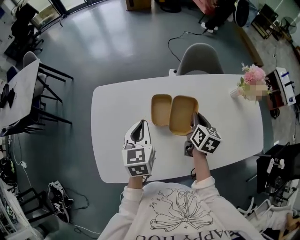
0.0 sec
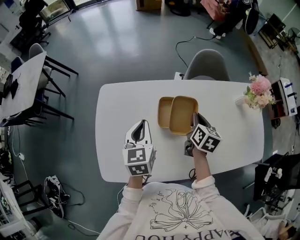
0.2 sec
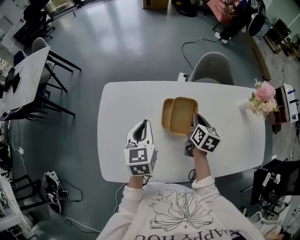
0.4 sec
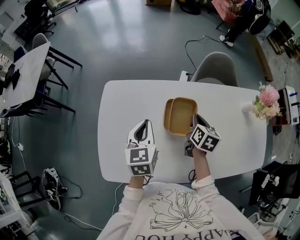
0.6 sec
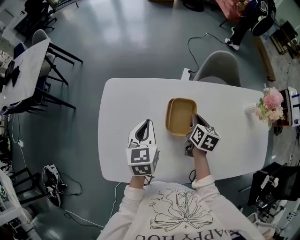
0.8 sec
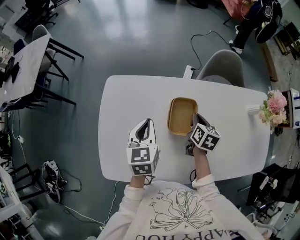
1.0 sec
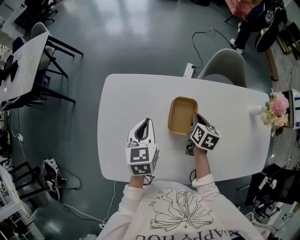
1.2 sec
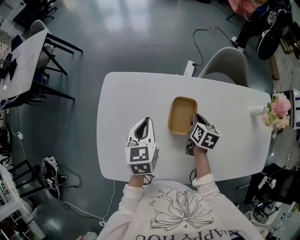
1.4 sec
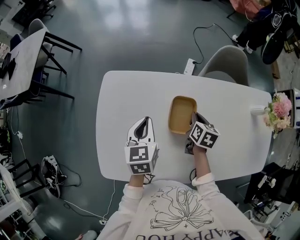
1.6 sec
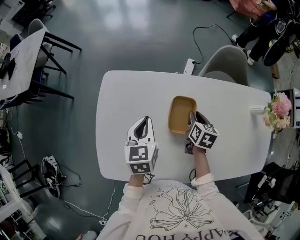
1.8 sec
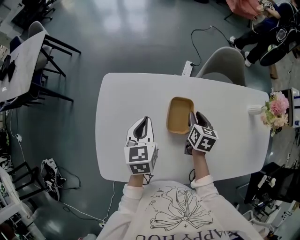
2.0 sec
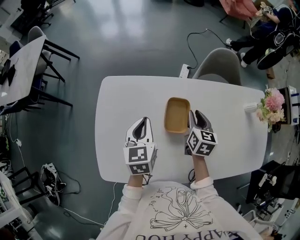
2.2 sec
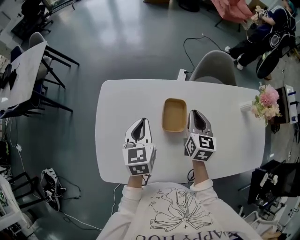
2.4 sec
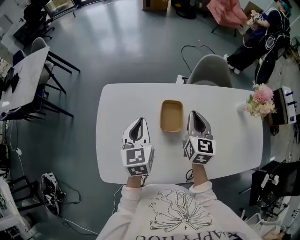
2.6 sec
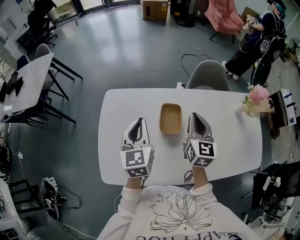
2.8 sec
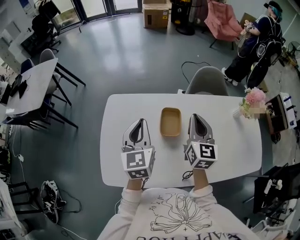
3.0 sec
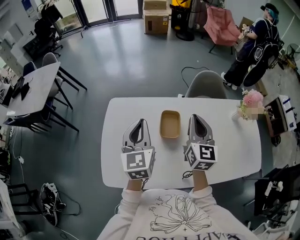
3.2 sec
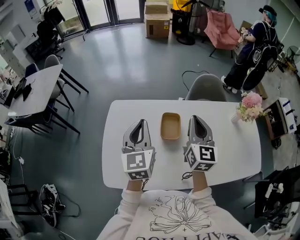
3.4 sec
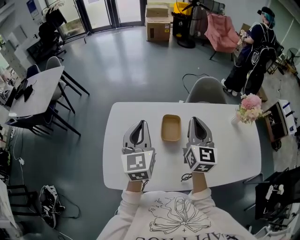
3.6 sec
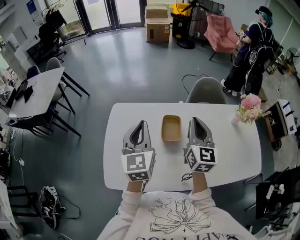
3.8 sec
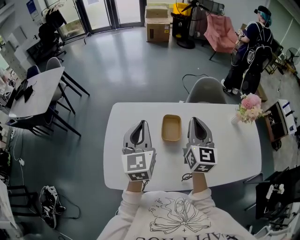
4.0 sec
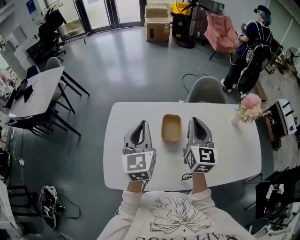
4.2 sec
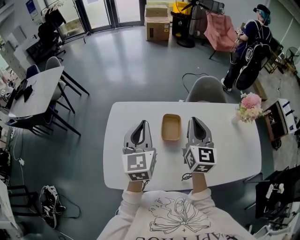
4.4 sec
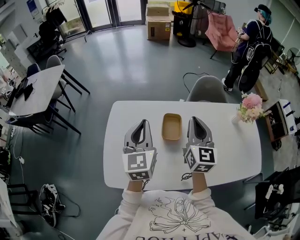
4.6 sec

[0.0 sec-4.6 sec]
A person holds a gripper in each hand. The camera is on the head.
0.0 sec to 1.6 sec: The right gripper moves downward, to the left and forward, about 15 cm. Meanwhile the left gripper heads to the left, downward and forward, covering some 10 cm.
1.6 sec to 3.0 sec: The right gripper heads upward, covering approximately 25 cm, tips its fingers upward by approximately 40 degrees, and opens, then closes again. The left gripper heads upward, covering some 15 cm, and changes its angle by about 20 degrees.
3.0 sec to 4.6 sec: The left gripper moves upward, about 5 cm, while the right gripper ends up some 5 cm from where it was.

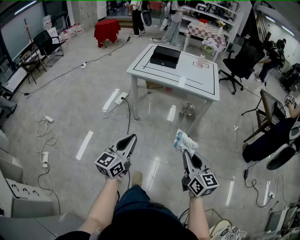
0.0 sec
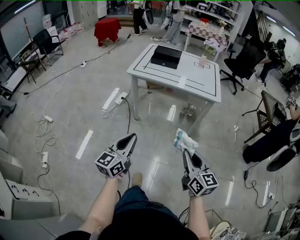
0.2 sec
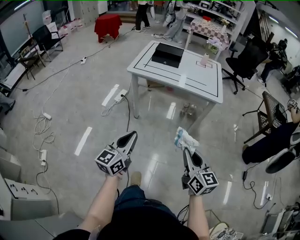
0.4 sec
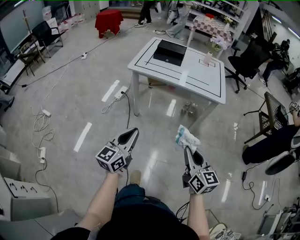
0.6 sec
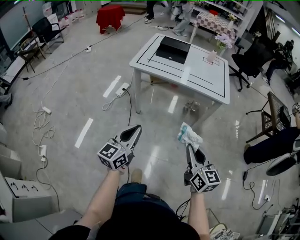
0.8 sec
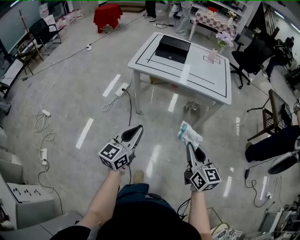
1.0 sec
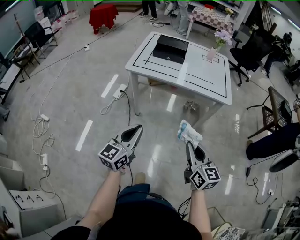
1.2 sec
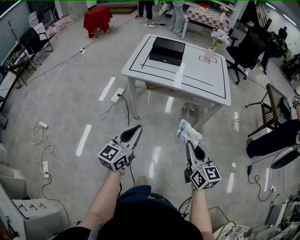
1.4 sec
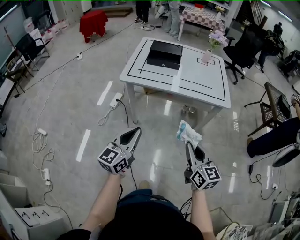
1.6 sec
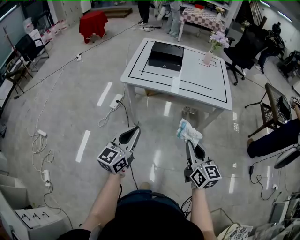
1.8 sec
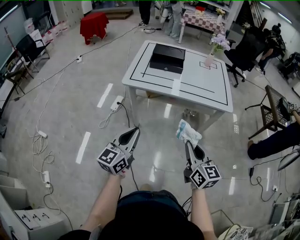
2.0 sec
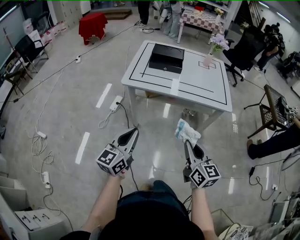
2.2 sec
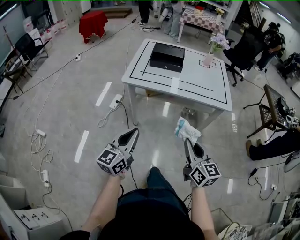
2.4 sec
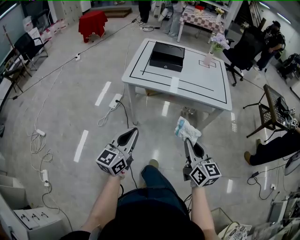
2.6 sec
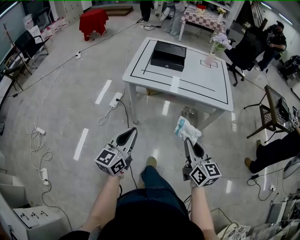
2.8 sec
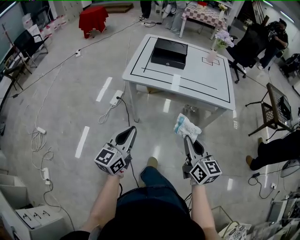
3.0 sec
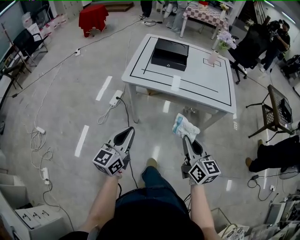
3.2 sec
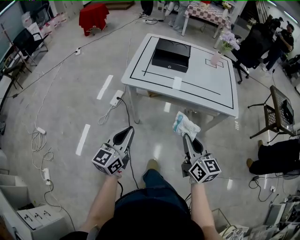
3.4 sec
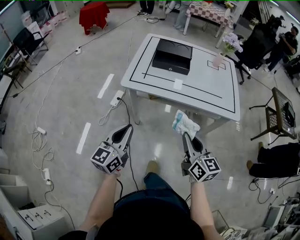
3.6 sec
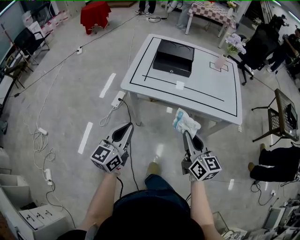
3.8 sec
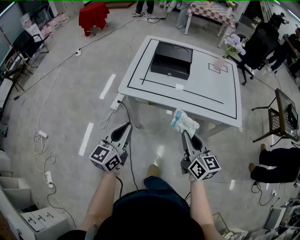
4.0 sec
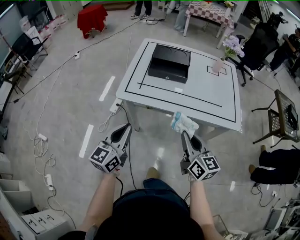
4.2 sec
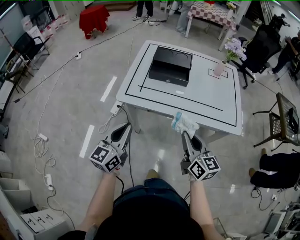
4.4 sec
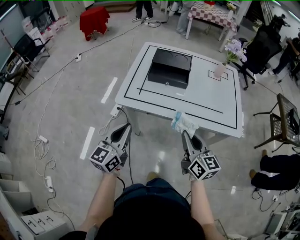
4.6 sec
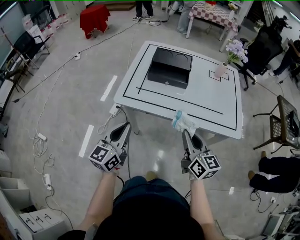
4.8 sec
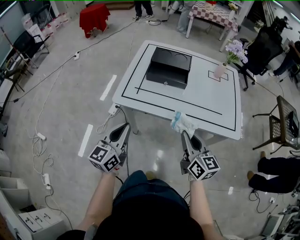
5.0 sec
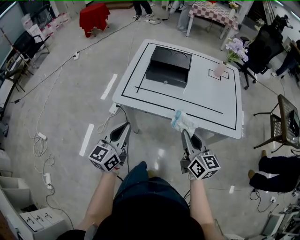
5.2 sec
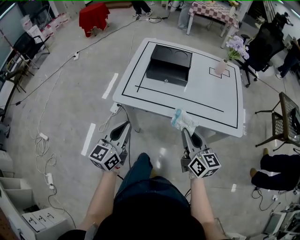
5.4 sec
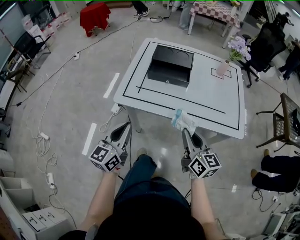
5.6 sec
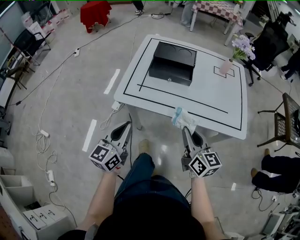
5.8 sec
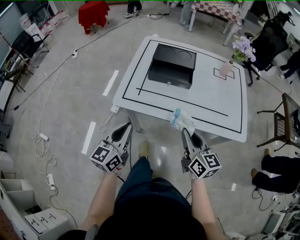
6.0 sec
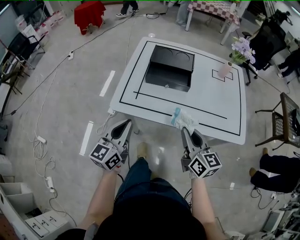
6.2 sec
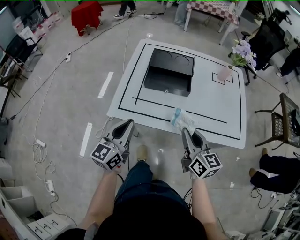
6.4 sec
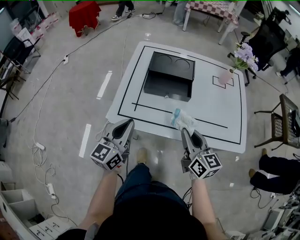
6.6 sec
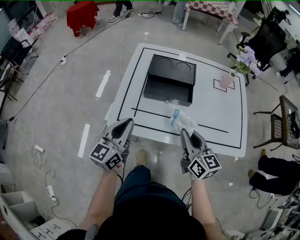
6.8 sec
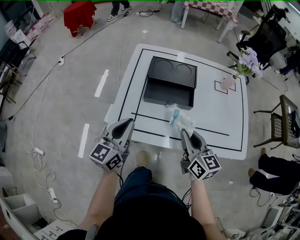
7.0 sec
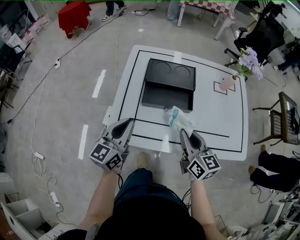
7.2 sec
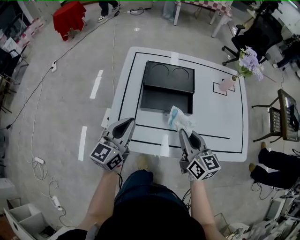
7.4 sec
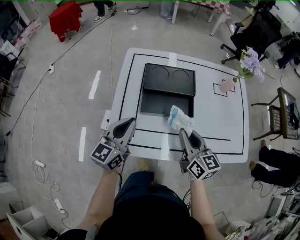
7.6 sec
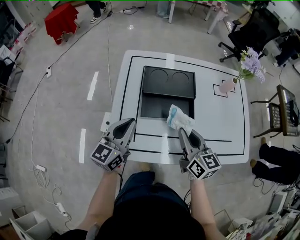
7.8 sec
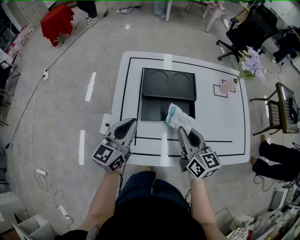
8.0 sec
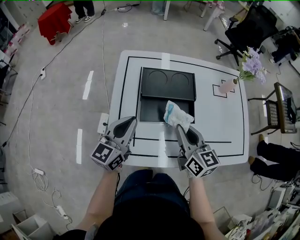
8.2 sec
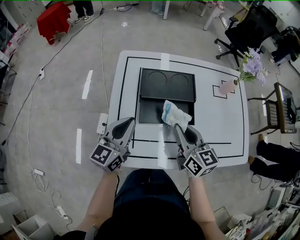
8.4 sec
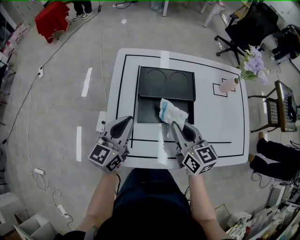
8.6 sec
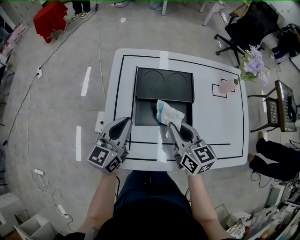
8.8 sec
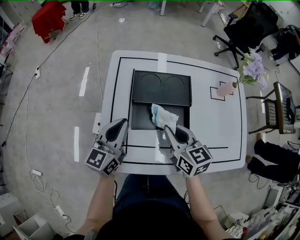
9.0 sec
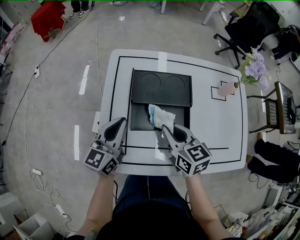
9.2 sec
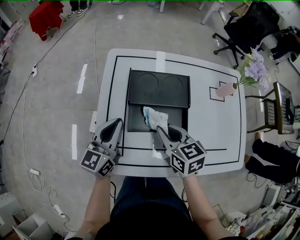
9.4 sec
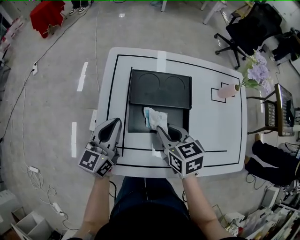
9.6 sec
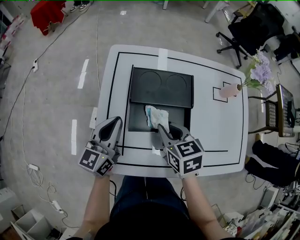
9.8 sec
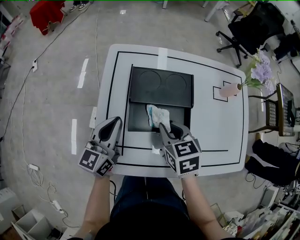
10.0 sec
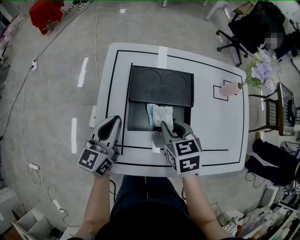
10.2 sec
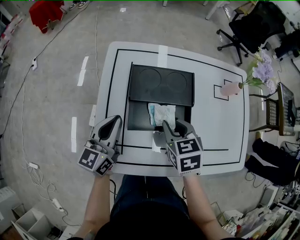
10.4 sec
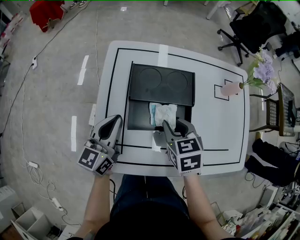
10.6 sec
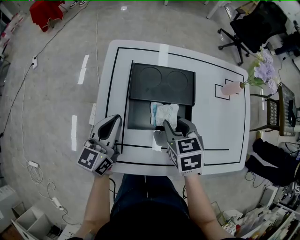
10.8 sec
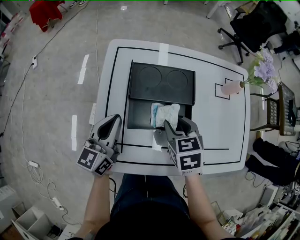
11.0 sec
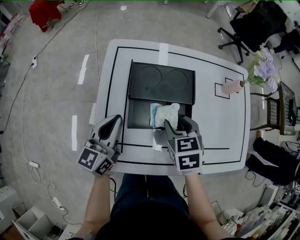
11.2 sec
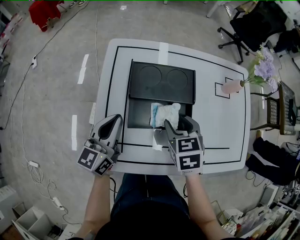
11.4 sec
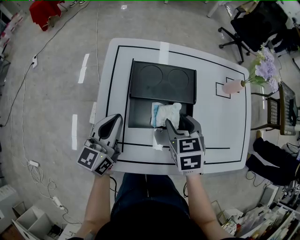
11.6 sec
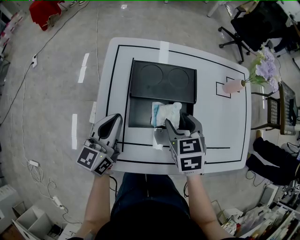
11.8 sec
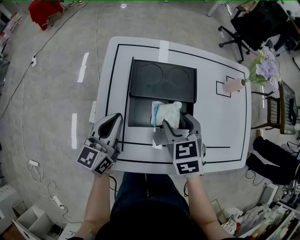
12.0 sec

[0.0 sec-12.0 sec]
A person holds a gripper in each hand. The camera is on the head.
0.0 sec to 1.6 sec: The grippers both shift forward by approximately 25 cm.
1.6 sec to 3.0 sec: The left gripper is displaced to the left by some 5 cm. The right gripper shifts by about 5 cm.
3.0 sec to 4.4 sec: The two grippers go approximately 20 cm forward.
4.4 sec to 6.0 sec: Both grippers move forward, roughly 5 cm.
6.0 sec to 7.6 sec: The grippers both shift forward by about 25 cm.
7.6 sec to 9.0 sec: Both grippers travel together forward, some 10 cm.
9.0 sec to 10.4 sec: The right gripper changes place by some 5 cm, and turns by roughly 30 degrees.
10.4 sec to 12.0 sec: The right gripper opens up.

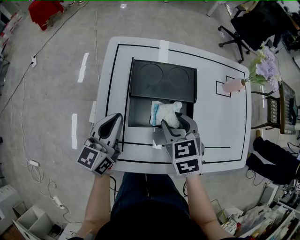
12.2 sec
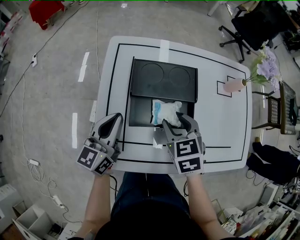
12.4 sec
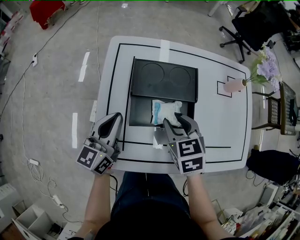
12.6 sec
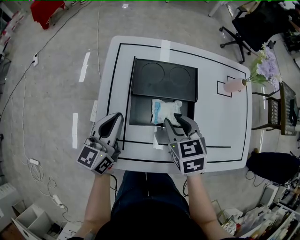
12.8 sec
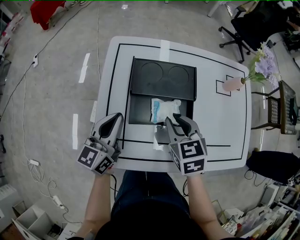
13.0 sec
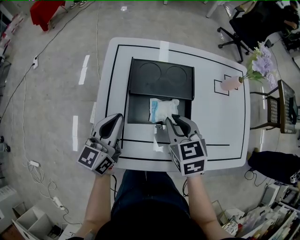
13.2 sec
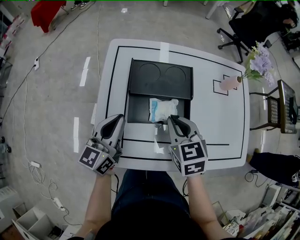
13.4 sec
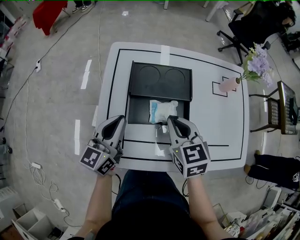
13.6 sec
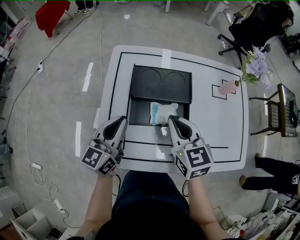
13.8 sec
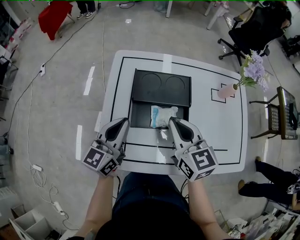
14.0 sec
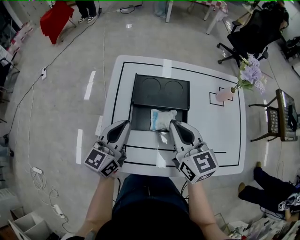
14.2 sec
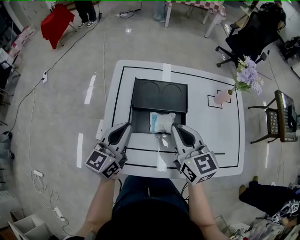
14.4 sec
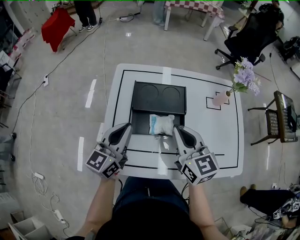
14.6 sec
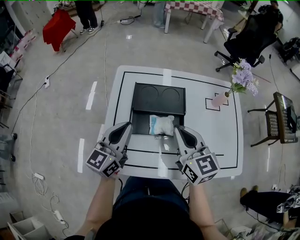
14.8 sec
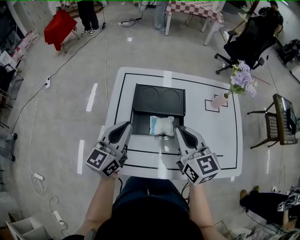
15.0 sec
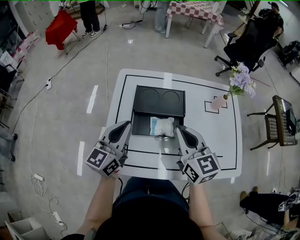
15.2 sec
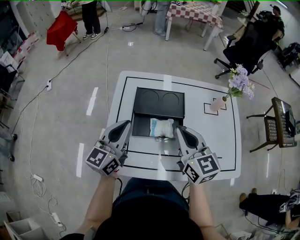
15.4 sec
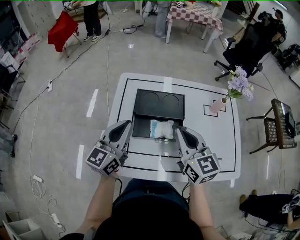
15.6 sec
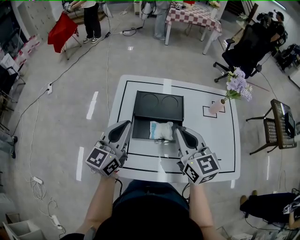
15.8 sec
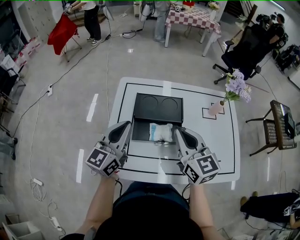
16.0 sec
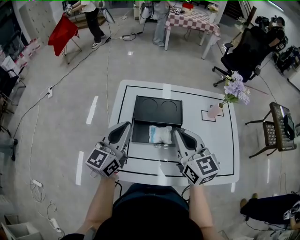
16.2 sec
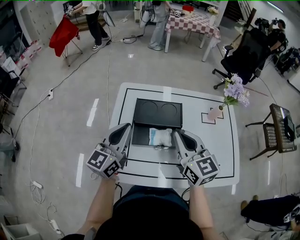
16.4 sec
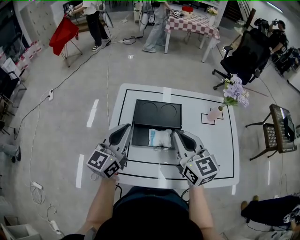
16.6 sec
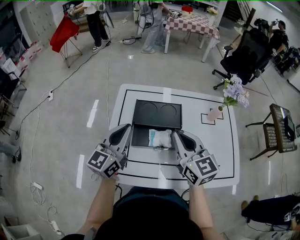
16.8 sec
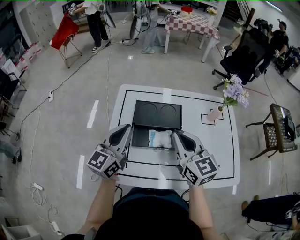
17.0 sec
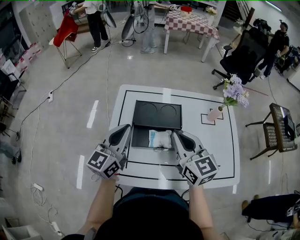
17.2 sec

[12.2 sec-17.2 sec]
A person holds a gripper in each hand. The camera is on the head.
12.2 sec to 13.8 sec: The right gripper travels upward by some 10 cm, turns by some 20 degrees, and closes.
13.8 sec to 15.6 sec: Both grippers move upward, approximately 10 cm.
15.6 sec to 17.2 sec: The grippers stay close to where they were, moving slightly.

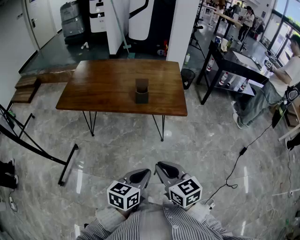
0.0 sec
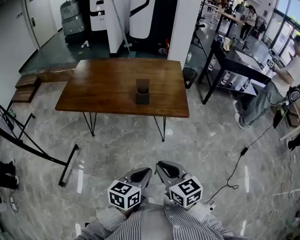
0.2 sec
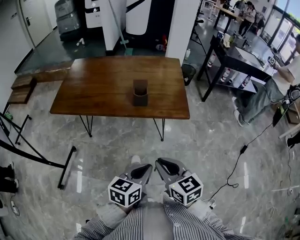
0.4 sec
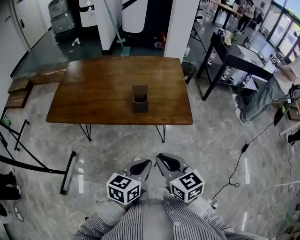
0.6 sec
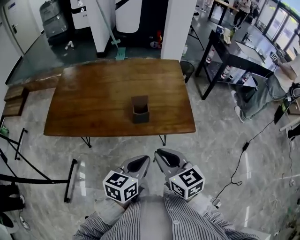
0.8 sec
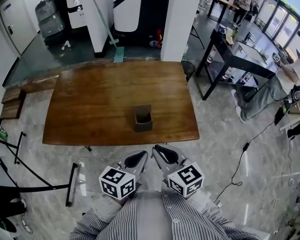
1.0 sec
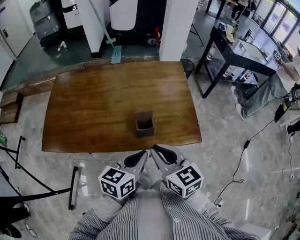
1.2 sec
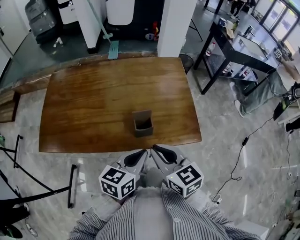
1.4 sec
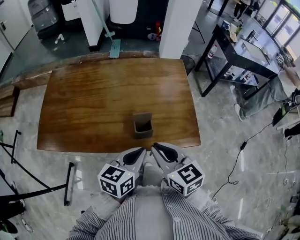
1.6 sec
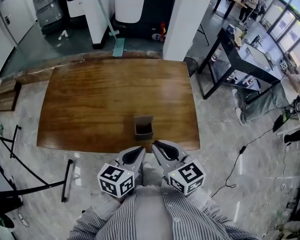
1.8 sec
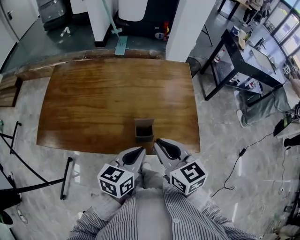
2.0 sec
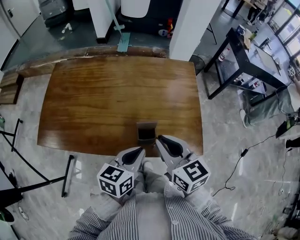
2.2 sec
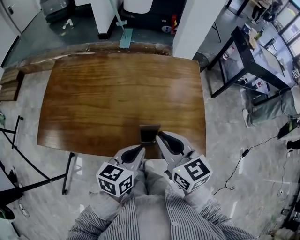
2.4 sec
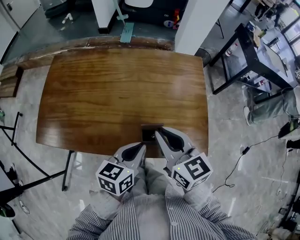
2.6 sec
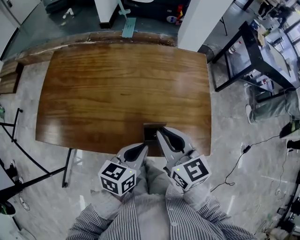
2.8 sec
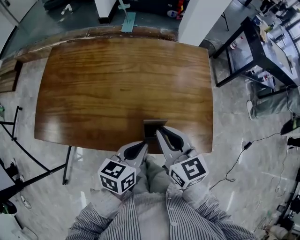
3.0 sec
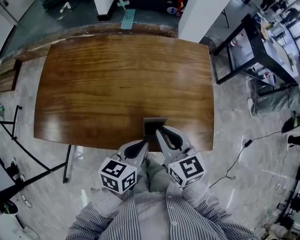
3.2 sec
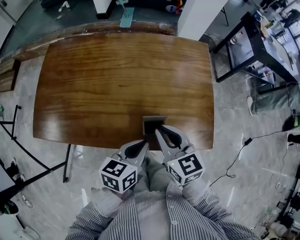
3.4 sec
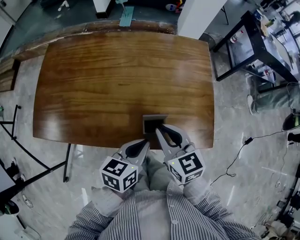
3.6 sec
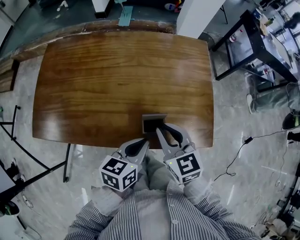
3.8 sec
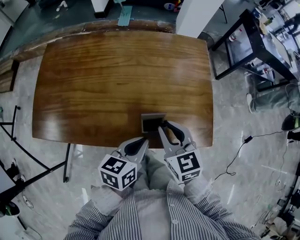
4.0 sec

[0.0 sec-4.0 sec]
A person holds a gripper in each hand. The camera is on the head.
0.0 sec to 1.4 sec: Both grippers move forward, roughly 35 cm.
1.4 sec to 2.6 sec: Both grippers travel together forward, roughly 10 cm.
2.6 sec to 4.0 sec: The right gripper moves downward, roughly 10 cm.
